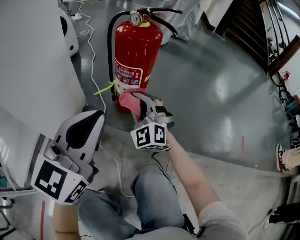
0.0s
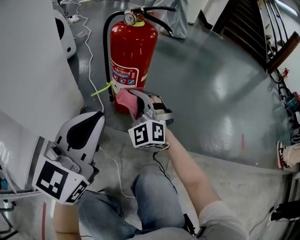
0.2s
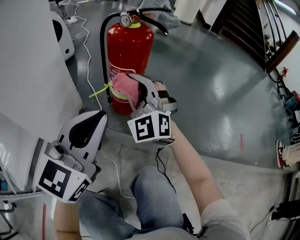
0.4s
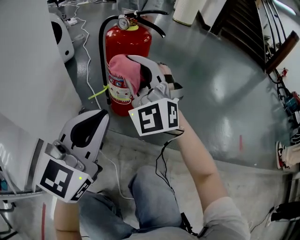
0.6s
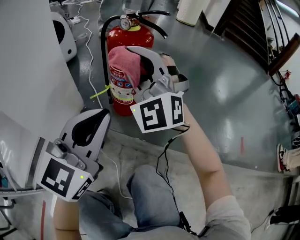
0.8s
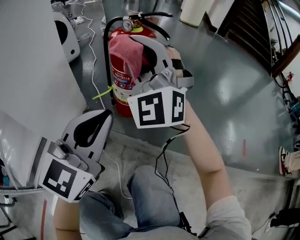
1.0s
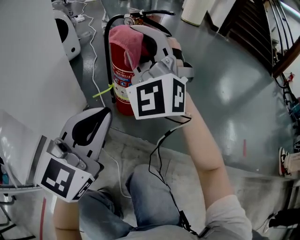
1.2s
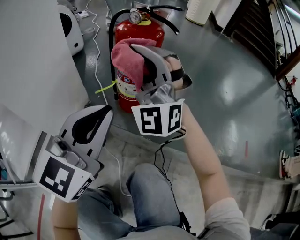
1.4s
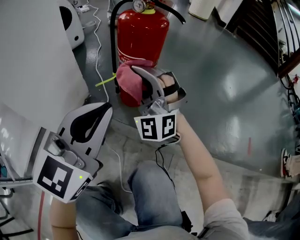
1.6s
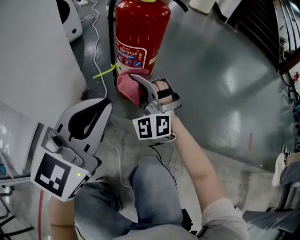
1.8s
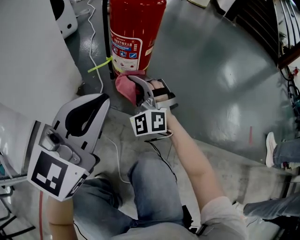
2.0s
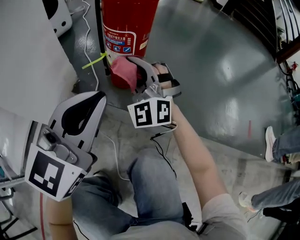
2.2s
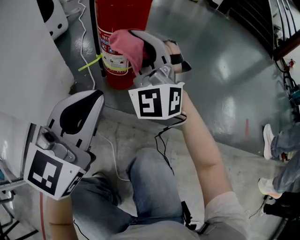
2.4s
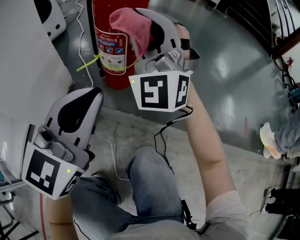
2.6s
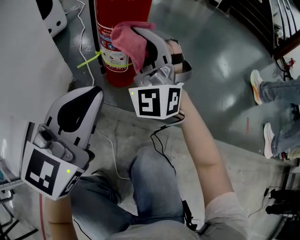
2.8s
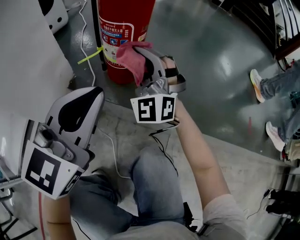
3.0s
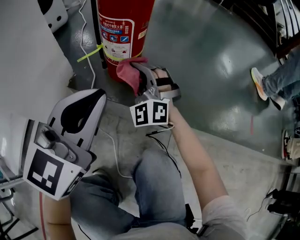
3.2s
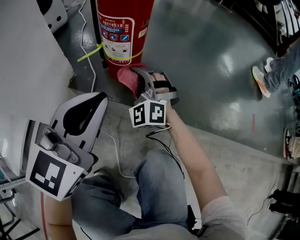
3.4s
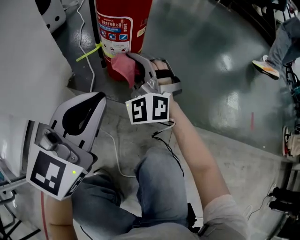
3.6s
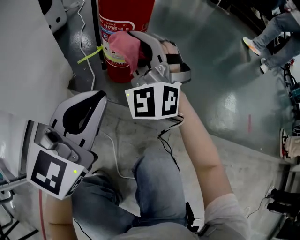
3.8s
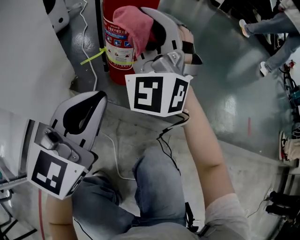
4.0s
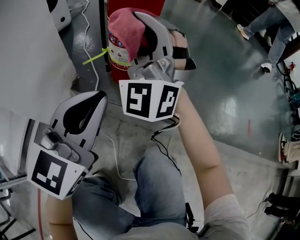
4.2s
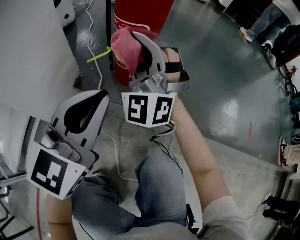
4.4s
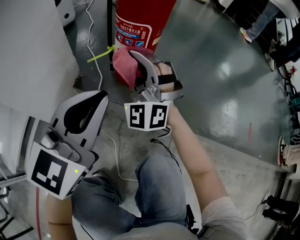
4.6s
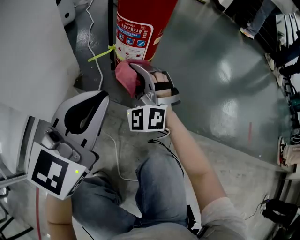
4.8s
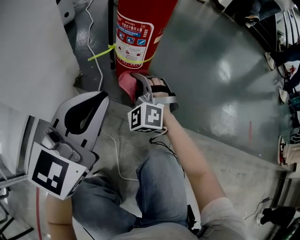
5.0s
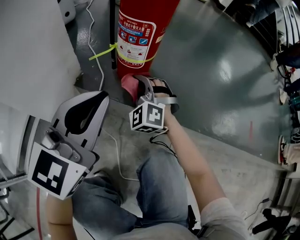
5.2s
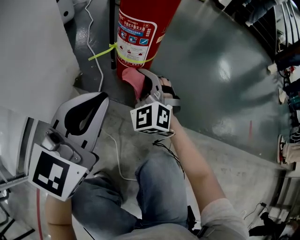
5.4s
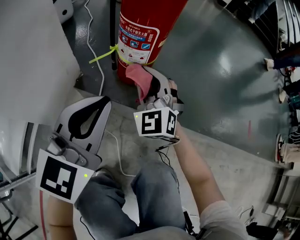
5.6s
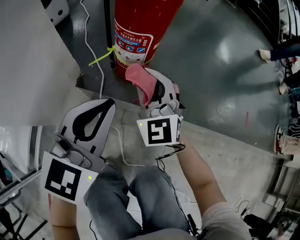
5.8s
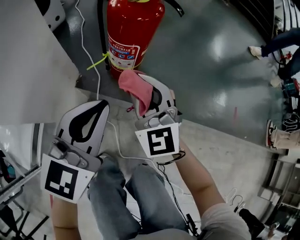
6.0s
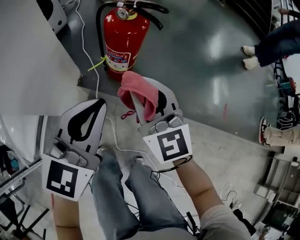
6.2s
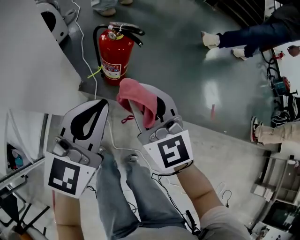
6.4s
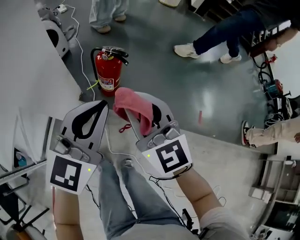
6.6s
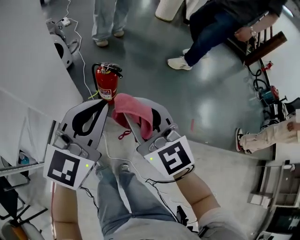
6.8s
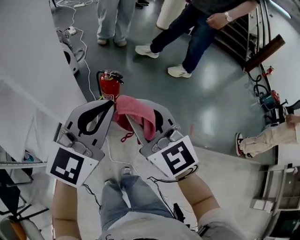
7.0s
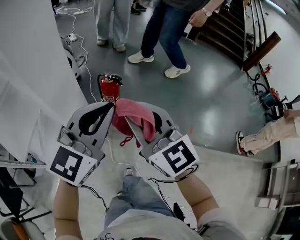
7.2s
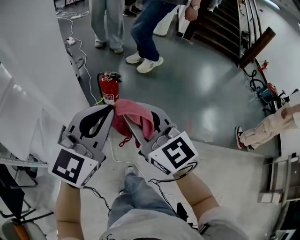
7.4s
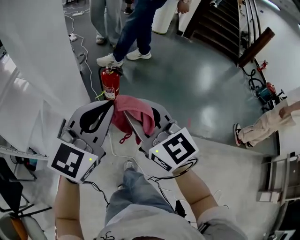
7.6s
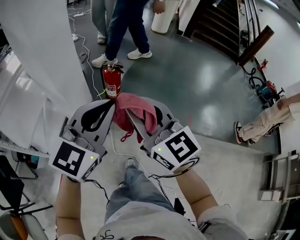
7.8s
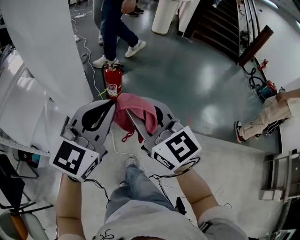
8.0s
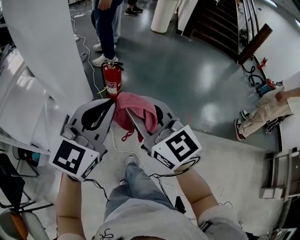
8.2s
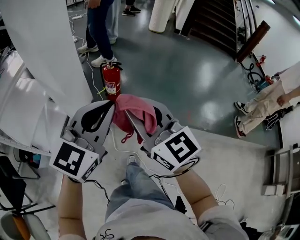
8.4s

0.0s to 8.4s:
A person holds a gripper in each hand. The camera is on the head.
0.0s to 1.4s: The right gripper moves upward, approximately 20 cm, and rotates some 30 degrees.
1.4s to 2.8s: The right gripper goes up and down, roughly 25 cm each way, reversing 2 times.
2.8s to 4.2s: The right gripper reaches about 20 cm downward, then returns.
4.2s to 5.6s: The right gripper heads downward, covering roughly 15 cm, and changes its angle by some 30 degrees.
5.6s to 7.0s: The grippers both shift upward by some 60 cm. The right gripper swivels some 40 degrees.
7.0s to 8.4s: Both grippers move backward, about 20 cm.

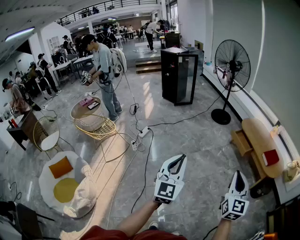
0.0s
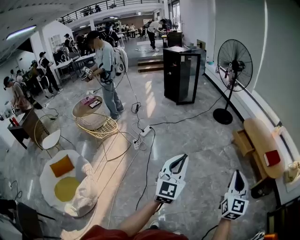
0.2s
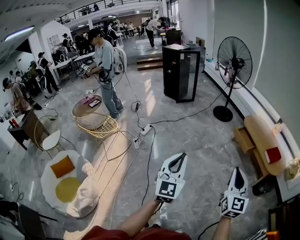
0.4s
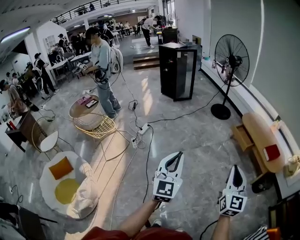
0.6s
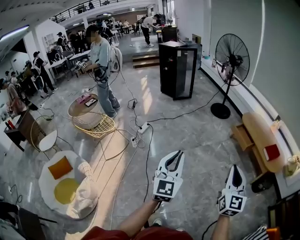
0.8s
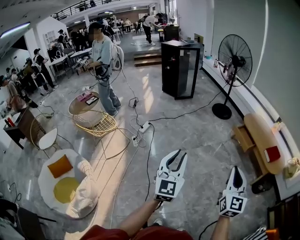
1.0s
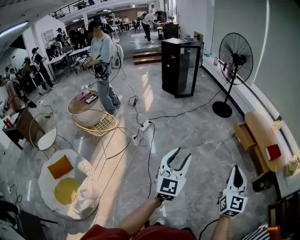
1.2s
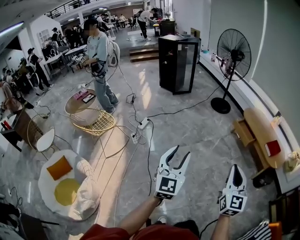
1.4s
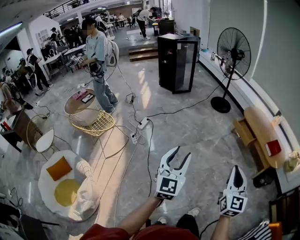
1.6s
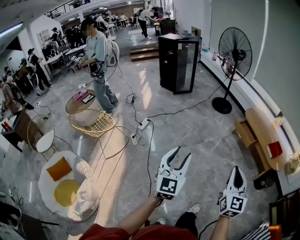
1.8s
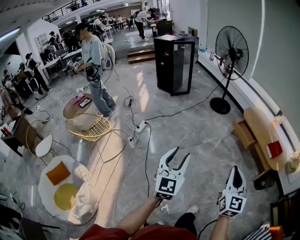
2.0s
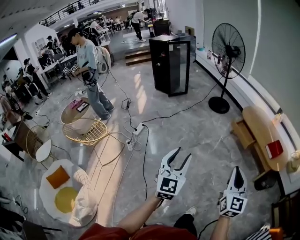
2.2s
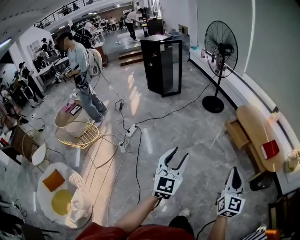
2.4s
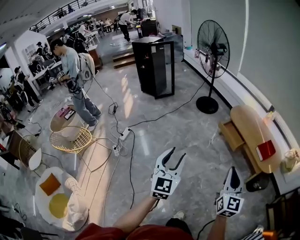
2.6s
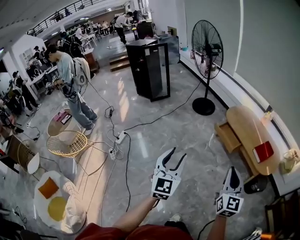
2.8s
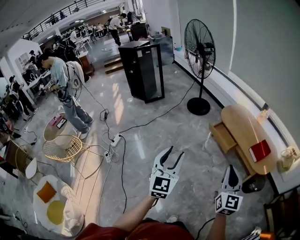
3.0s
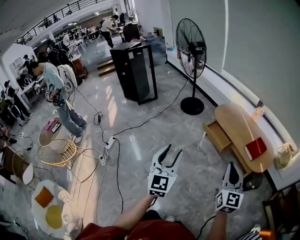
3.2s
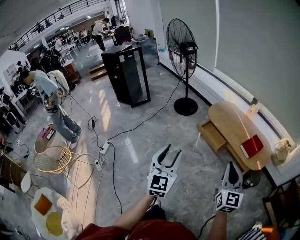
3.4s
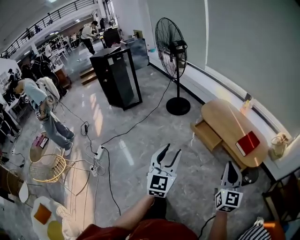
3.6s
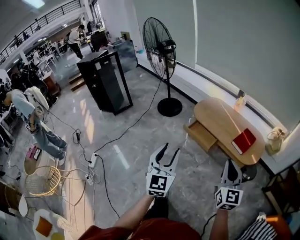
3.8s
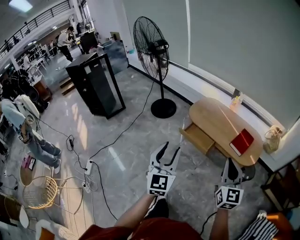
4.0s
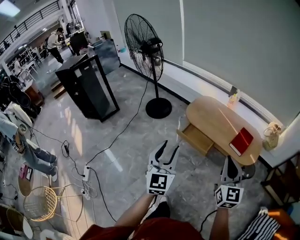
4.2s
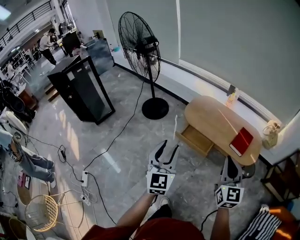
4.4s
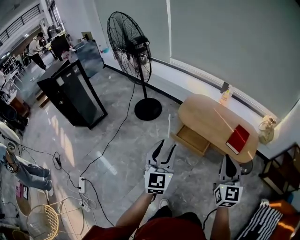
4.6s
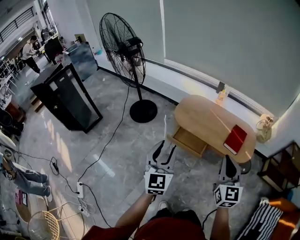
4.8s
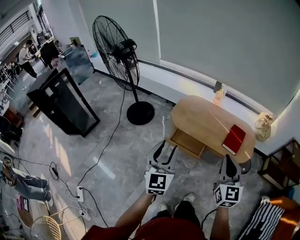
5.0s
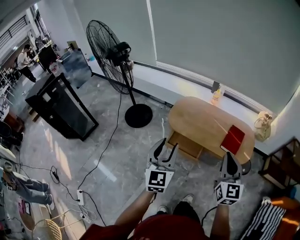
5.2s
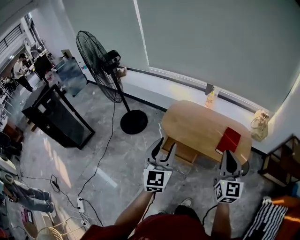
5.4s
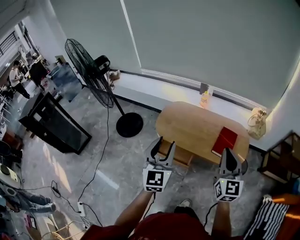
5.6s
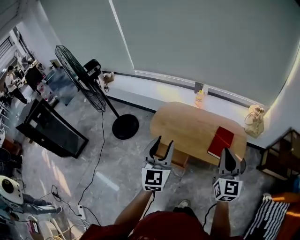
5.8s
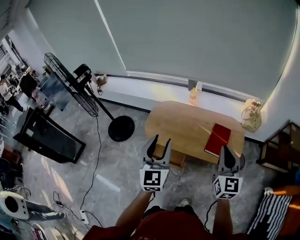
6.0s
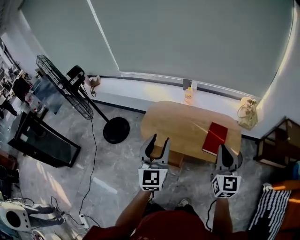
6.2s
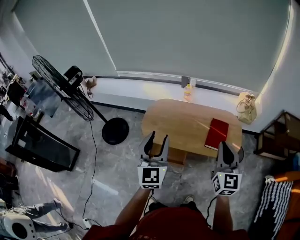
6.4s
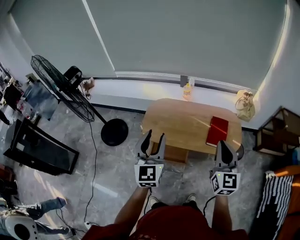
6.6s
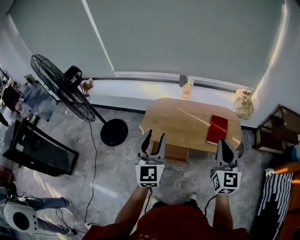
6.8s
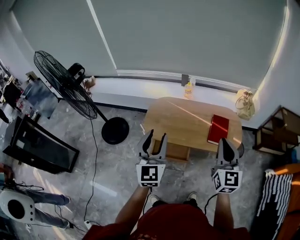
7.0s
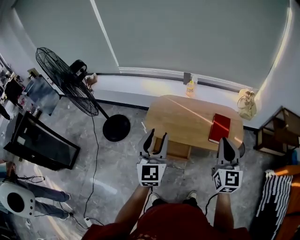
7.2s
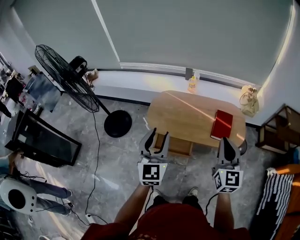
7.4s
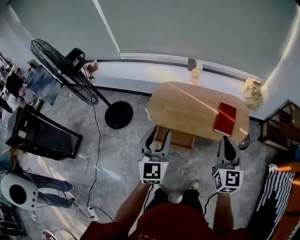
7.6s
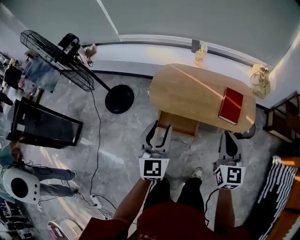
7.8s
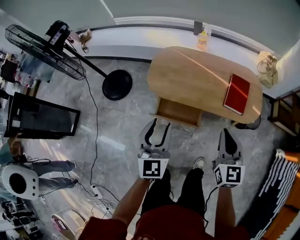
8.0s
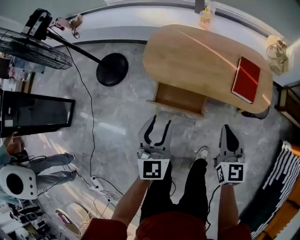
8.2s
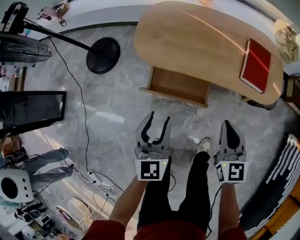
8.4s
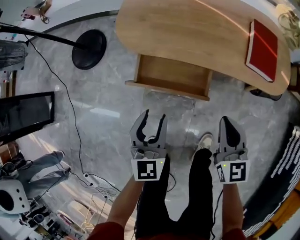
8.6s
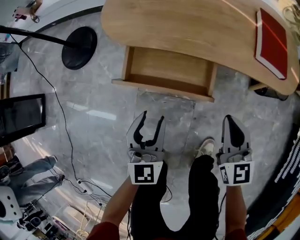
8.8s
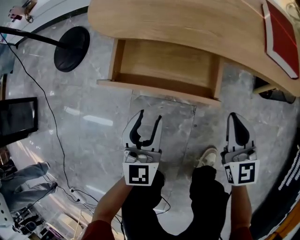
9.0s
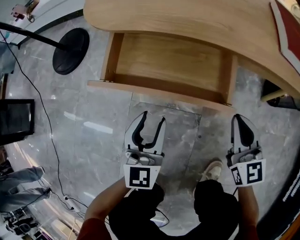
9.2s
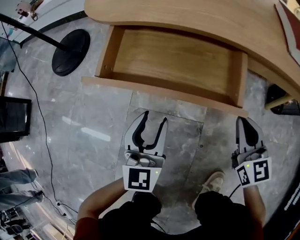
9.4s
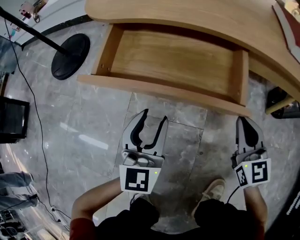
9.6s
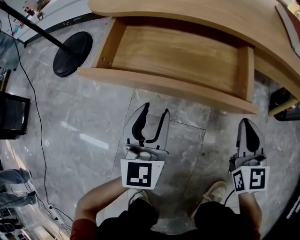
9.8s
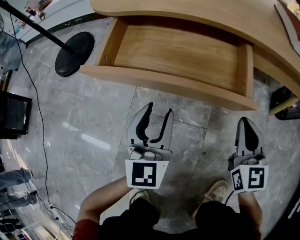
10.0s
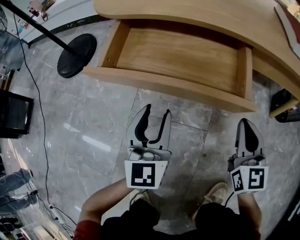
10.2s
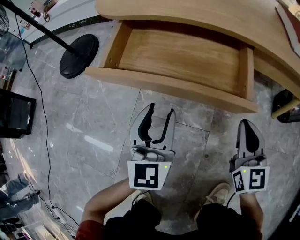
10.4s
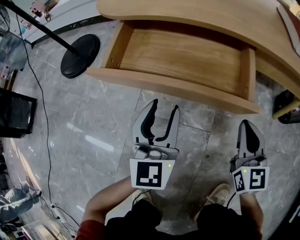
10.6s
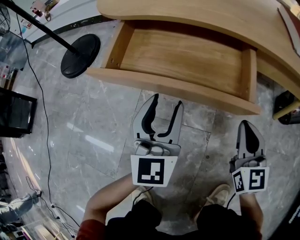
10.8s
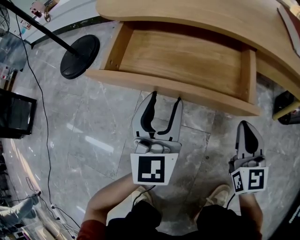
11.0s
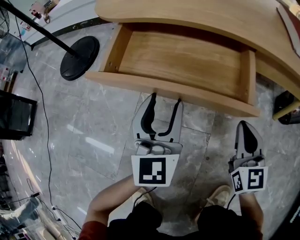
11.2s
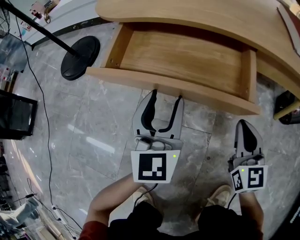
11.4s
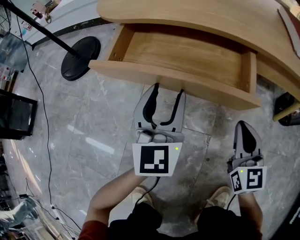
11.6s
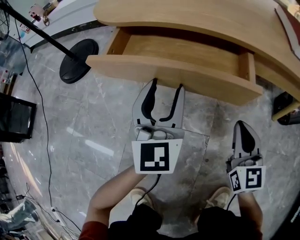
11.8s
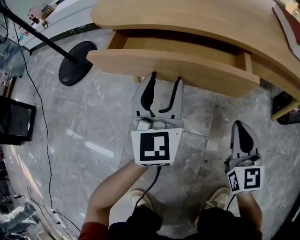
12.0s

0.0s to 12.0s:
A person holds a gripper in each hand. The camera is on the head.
0.0s to 1.6s: Both grippers move to the left, about 10 cm. The left gripper opens up.
1.6s to 3.0s: The grippers both shift forward and to the right by about 40 cm.
3.0s to 4.4s: Both grippers move forward, roughly 35 cm. The right gripper swivels about 20 degrees, while the left gripper swivels approximately 20 degrees.
4.4s to 6.0s: The two grippers go about 35 cm forward and to the right.
6.0s to 7.6s: Both grippers move to the left, approximately 10 cm.
7.6s to 9.0s: Both grippers travel together downward, some 60 cm.
9.0s to 10.4s: Both grippers move downward, about 10 cm.
10.4s to 12.0s: The left gripper travels forward by roughly 10 cm.

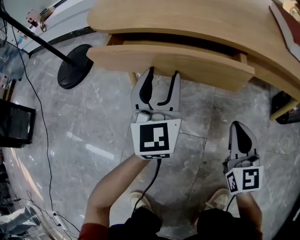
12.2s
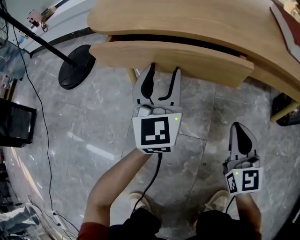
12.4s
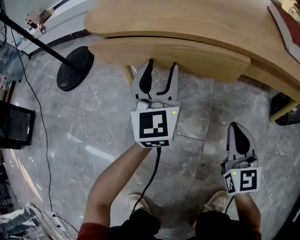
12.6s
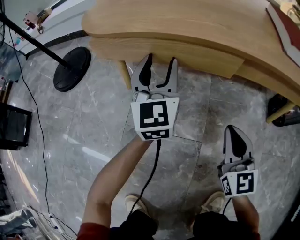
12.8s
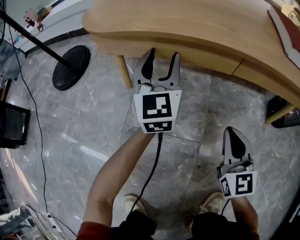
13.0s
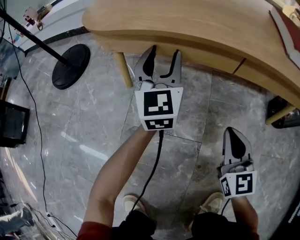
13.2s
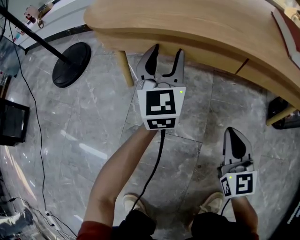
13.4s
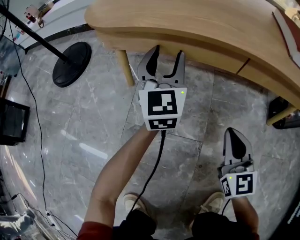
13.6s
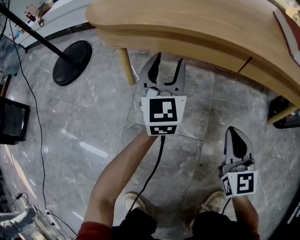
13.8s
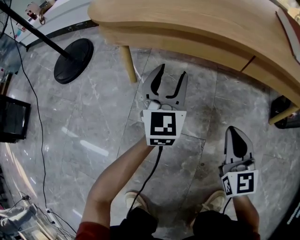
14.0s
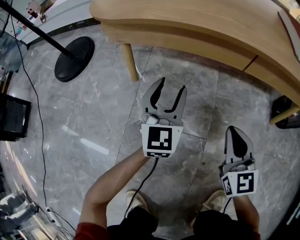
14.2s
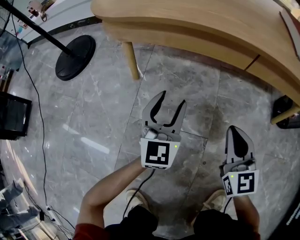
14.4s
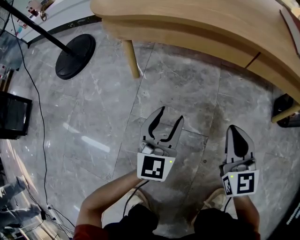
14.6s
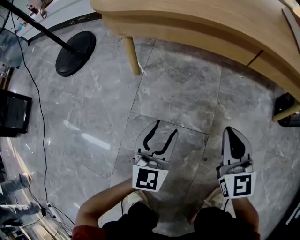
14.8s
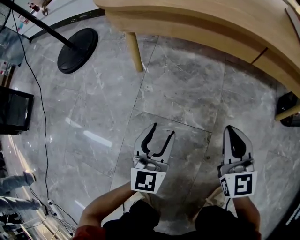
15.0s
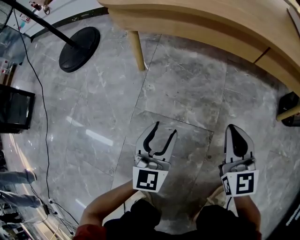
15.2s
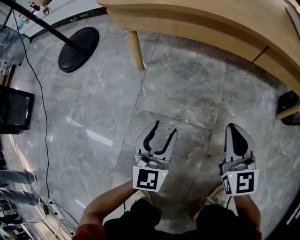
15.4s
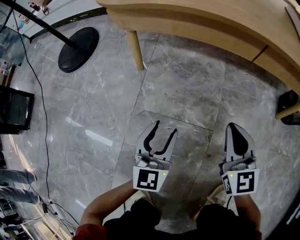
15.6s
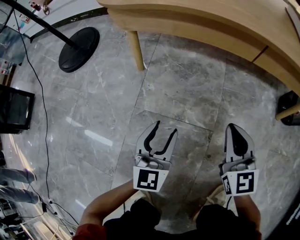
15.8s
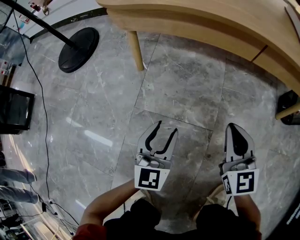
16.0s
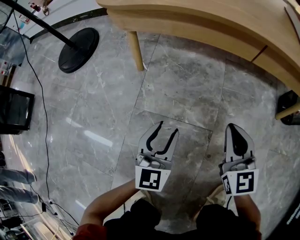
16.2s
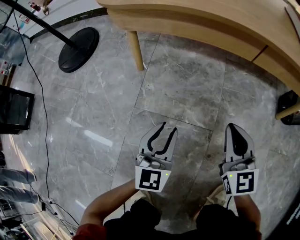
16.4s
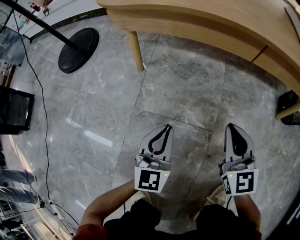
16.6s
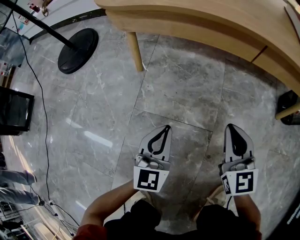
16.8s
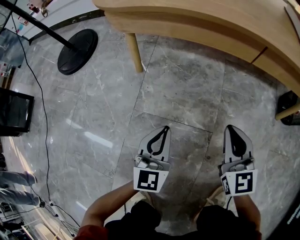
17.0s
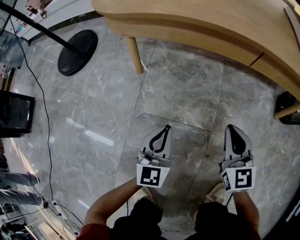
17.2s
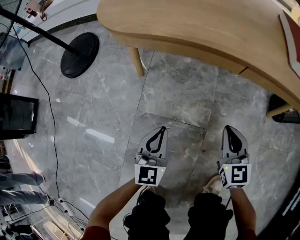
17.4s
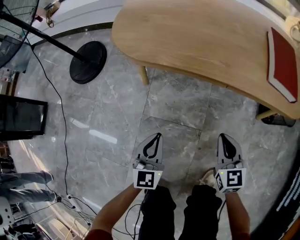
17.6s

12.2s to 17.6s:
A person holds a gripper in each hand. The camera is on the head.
12.2s to 13.6s: The left gripper shifts about 10 cm forward.
13.6s to 15.0s: The left gripper shifts approximately 25 cm backward and downward.
15.0s to 16.2s: The grippers move only a little.
16.2s to 17.6s: The two grippers go some 15 cm upward. The left gripper closes its fingers.
